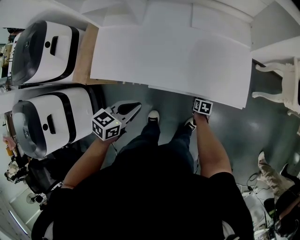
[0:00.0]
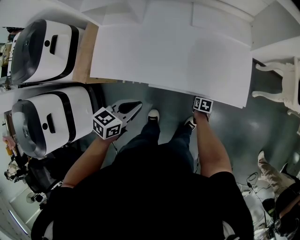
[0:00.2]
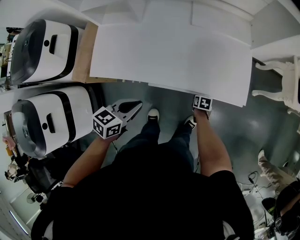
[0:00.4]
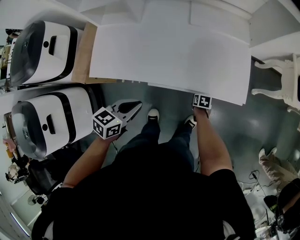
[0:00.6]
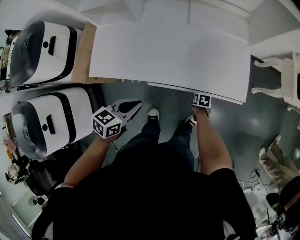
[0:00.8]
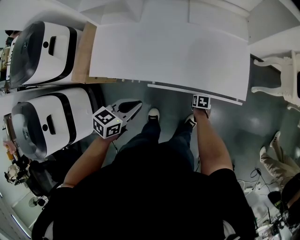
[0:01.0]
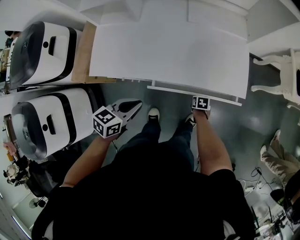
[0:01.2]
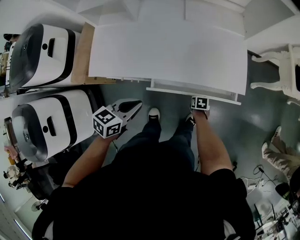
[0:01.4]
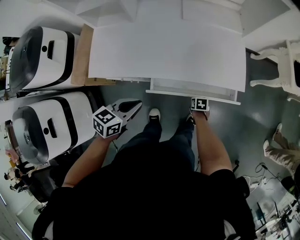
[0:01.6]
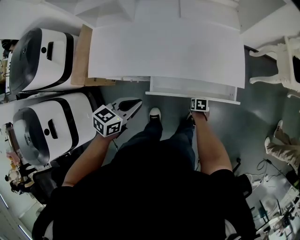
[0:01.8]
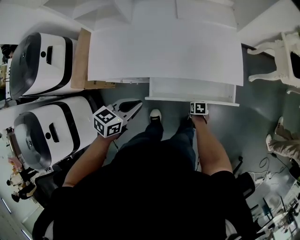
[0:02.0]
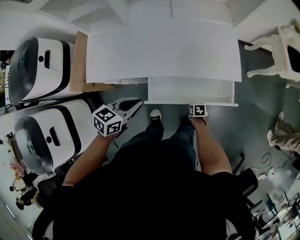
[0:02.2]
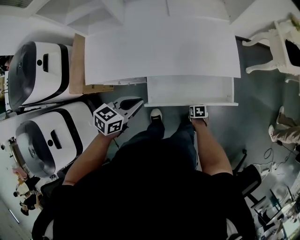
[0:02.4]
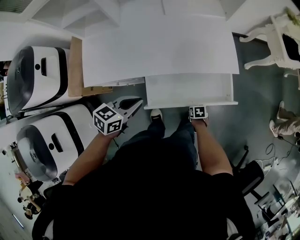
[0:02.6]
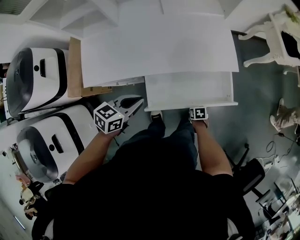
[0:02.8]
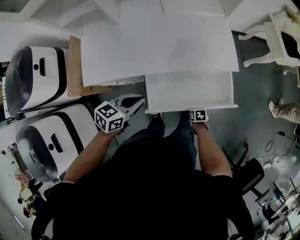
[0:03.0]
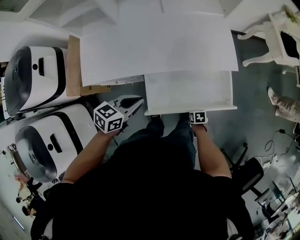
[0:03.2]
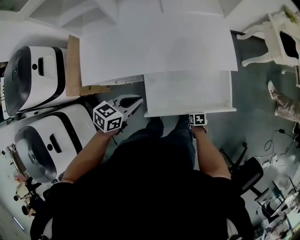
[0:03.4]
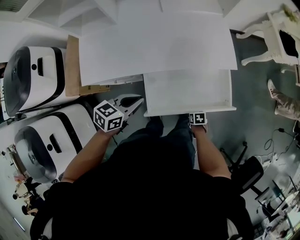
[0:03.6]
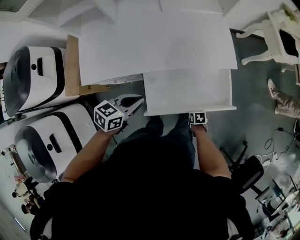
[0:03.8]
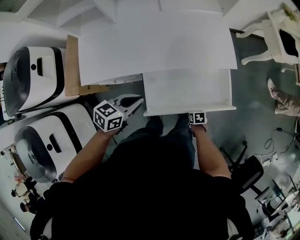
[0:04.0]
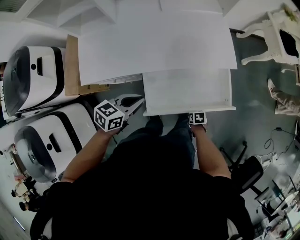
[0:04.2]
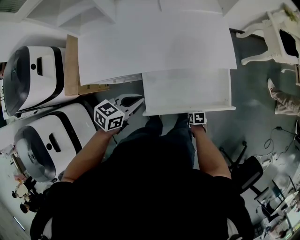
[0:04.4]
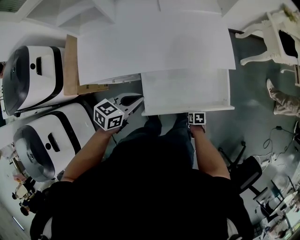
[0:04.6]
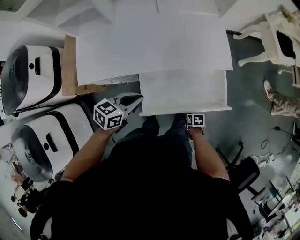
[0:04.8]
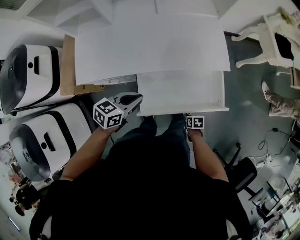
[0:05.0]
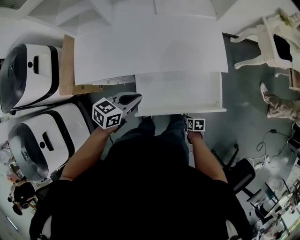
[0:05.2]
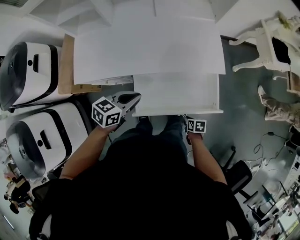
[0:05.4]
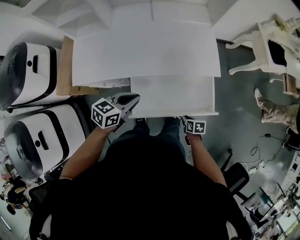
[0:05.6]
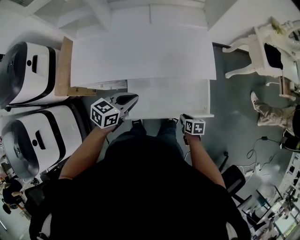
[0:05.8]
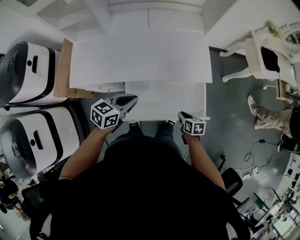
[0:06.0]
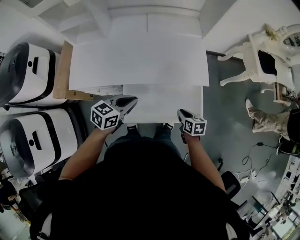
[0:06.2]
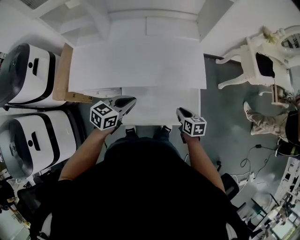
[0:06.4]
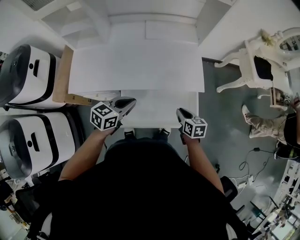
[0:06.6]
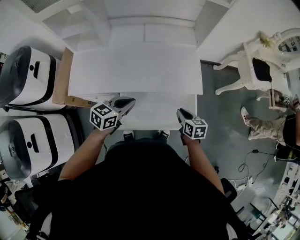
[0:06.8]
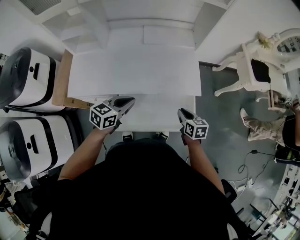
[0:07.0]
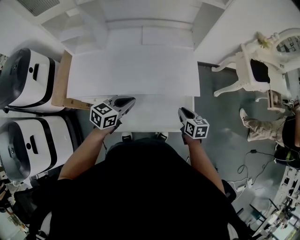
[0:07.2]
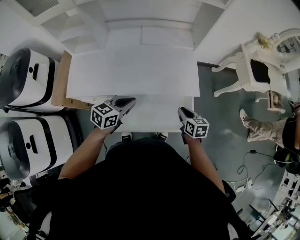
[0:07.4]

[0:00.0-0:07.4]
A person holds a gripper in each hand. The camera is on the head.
0:00.0 to 0:01.4: The right gripper moves backward, roughly 5 cm.
0:01.4 to 0:03.0: The right gripper changes place by about 15 cm.
0:03.0 to 0:04.4: The grippers move only a little.
0:04.4 to 0:06.0: The left gripper ends up roughly 10 cm from where it was. The right gripper goes some 15 cm upward, and rotates roughly 20 degrees.
0:06.0 to 0:07.4: The left gripper changes place by roughly 5 cm. Meanwhile the right gripper moves upward and forward, some 15 cm.

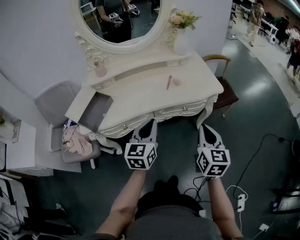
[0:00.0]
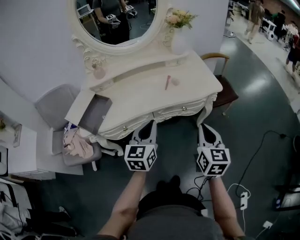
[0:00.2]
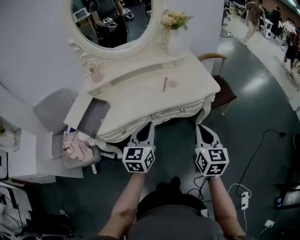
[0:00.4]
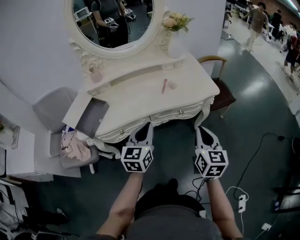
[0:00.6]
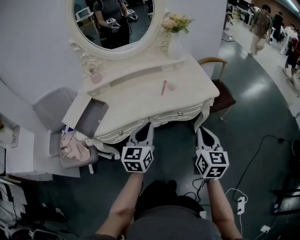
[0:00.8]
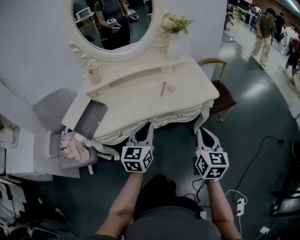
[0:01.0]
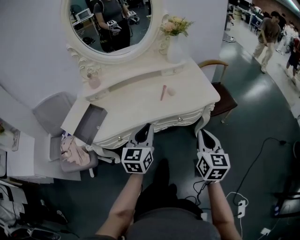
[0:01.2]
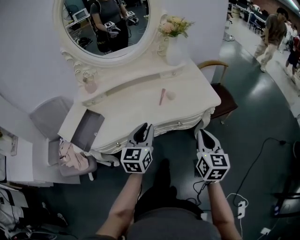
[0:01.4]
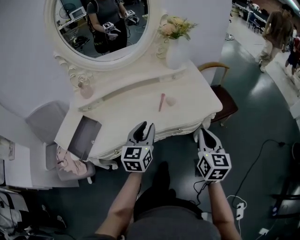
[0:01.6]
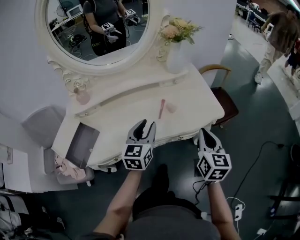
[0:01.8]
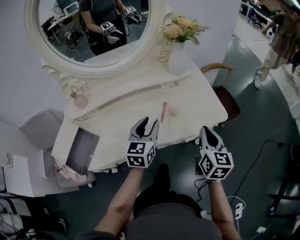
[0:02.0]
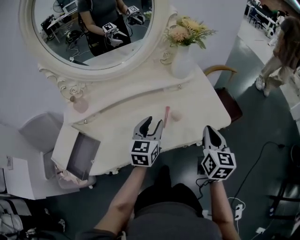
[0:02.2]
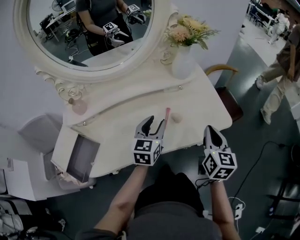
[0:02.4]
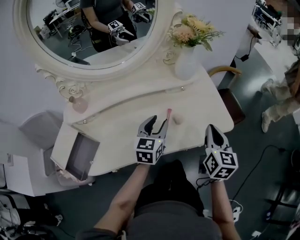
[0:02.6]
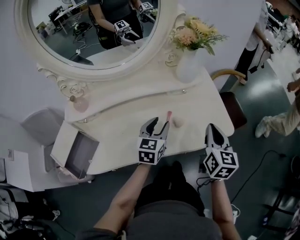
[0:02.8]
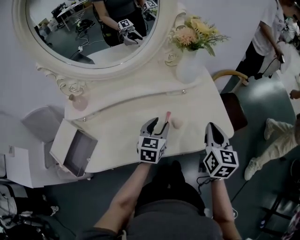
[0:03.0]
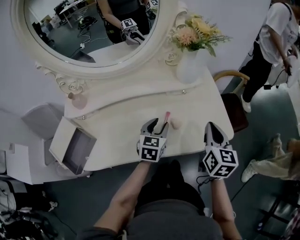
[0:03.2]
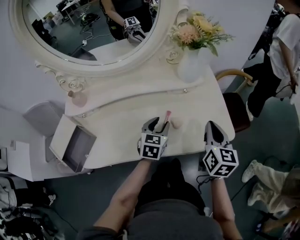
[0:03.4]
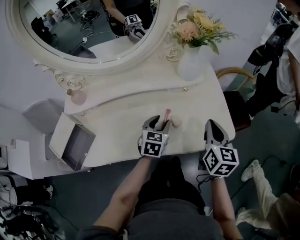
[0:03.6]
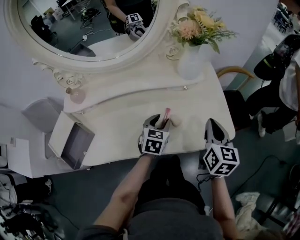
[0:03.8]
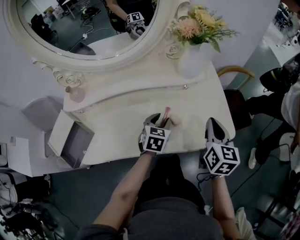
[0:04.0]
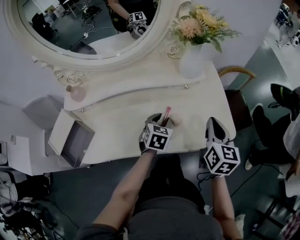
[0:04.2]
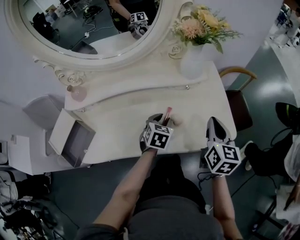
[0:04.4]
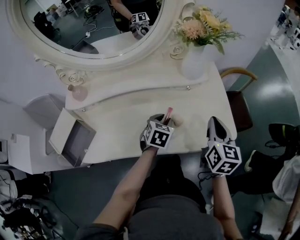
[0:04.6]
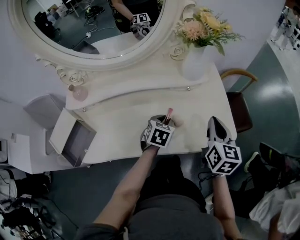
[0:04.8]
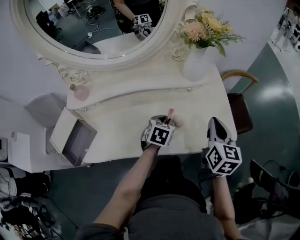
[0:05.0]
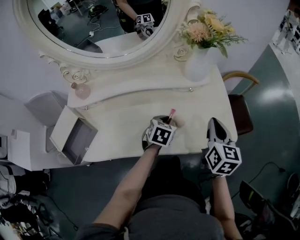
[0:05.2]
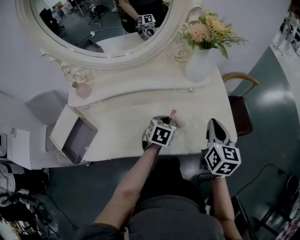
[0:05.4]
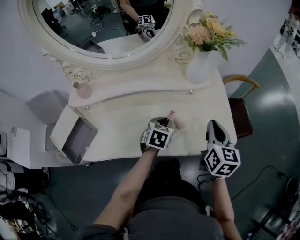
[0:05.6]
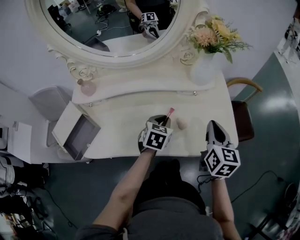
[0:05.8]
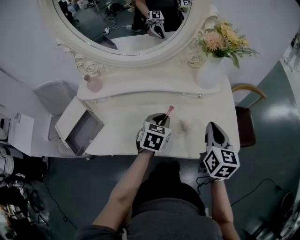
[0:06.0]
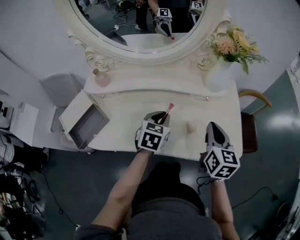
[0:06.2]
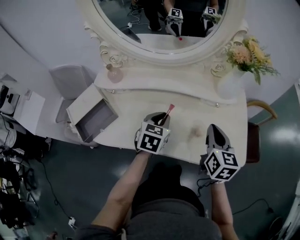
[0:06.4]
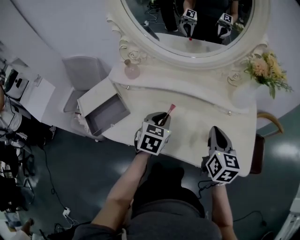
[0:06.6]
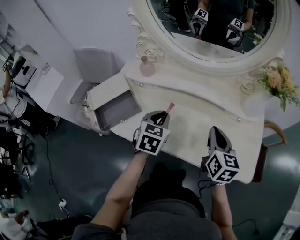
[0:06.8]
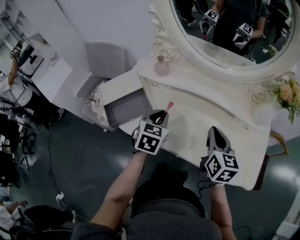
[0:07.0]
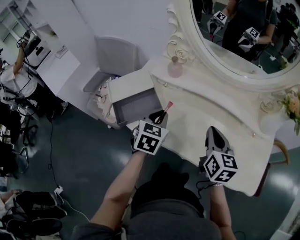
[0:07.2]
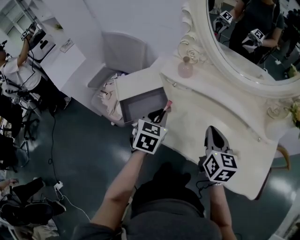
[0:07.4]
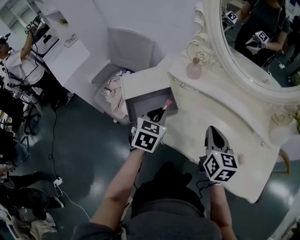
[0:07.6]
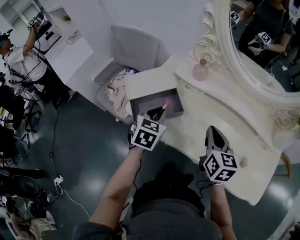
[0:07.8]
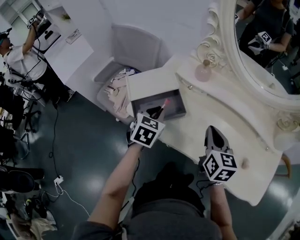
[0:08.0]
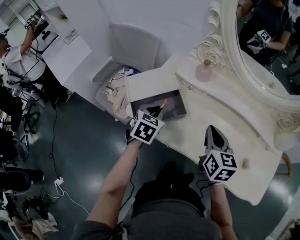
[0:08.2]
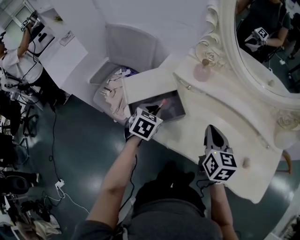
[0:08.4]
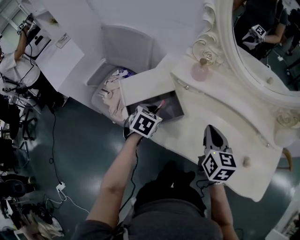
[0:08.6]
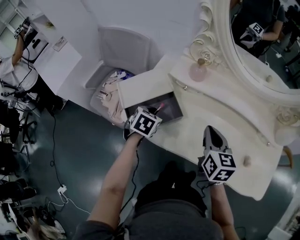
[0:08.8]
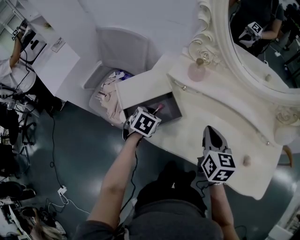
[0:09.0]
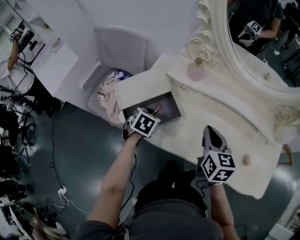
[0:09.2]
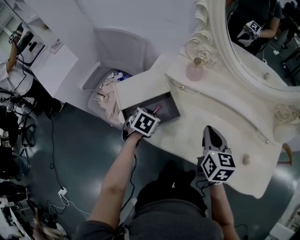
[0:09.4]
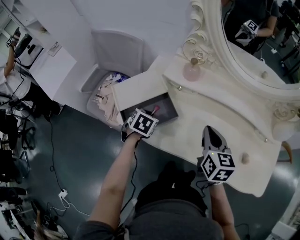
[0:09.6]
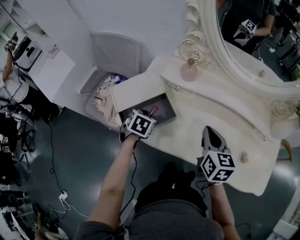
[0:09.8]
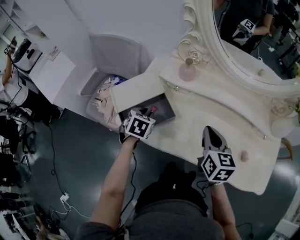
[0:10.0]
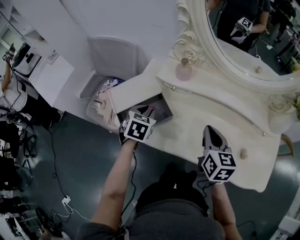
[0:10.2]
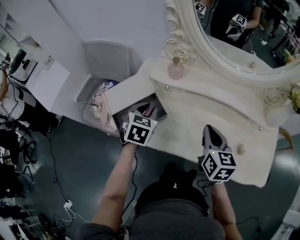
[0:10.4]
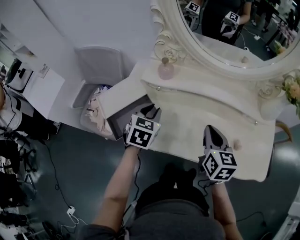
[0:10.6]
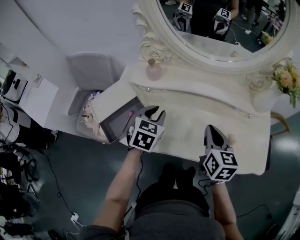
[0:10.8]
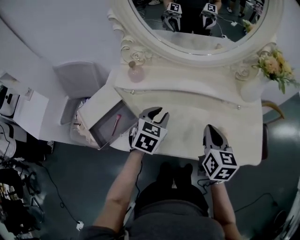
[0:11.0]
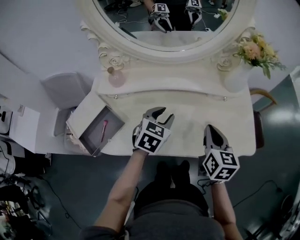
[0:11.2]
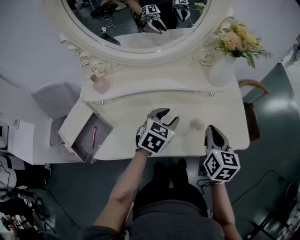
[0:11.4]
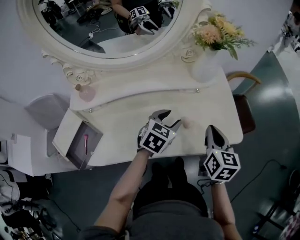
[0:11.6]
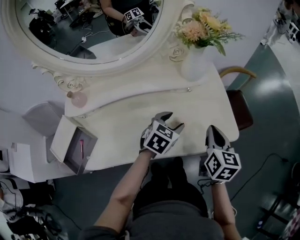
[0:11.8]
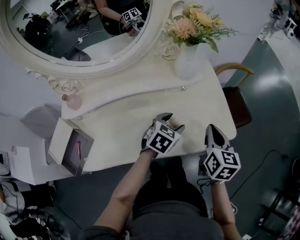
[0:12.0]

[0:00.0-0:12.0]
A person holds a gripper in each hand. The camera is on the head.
0:00.0 to 0:01.6: The grippers both shift forward by roughly 15 cm. The left gripper opens up.
0:01.6 to 0:03.0: The right gripper travels forward by some 20 cm. Meanwhile the left gripper shifts about 20 cm forward and downward.
0:03.0 to 0:04.4: The left gripper goes about 5 cm downward, and swivels approximately 20 degrees.
0:04.4 to 0:06.0: The left gripper moves upward, approximately 5 cm, and closes its fingers.
0:06.0 to 0:07.6: The right gripper ends up some 35 cm from where it was, and turns by roughly 40 degrees. The left gripper shifts by approximately 40 cm, and rotates about 30 degrees.
0:07.6 to 0:09.0: The left gripper is displaced downward, to the left and forward by some 15 cm, and changes its angle by approximately 20 degrees. The right gripper shifts by roughly 5 cm.
0:09.0 to 0:10.4: The right gripper heads to the right, covering approximately 5 cm. The left gripper heads upward and to the right, covering some 10 cm.
0:10.4 to 0:12.0: The right gripper moves approximately 40 cm, and changes its angle by some 40 degrees; the left gripper moves roughly 50 cm, swivels approximately 50 degrees, and opens up.

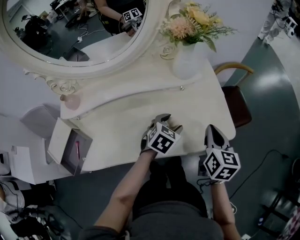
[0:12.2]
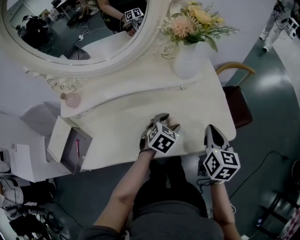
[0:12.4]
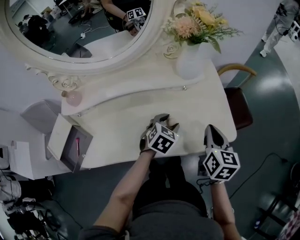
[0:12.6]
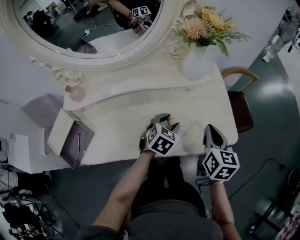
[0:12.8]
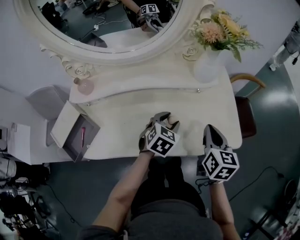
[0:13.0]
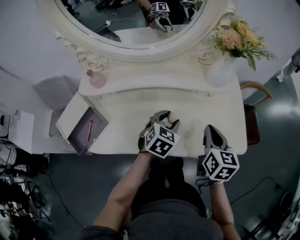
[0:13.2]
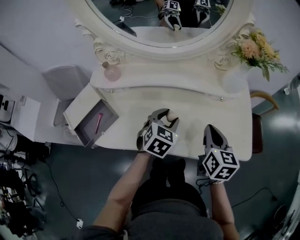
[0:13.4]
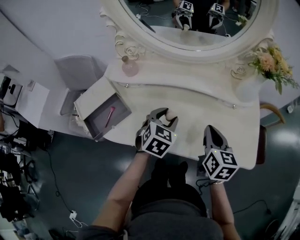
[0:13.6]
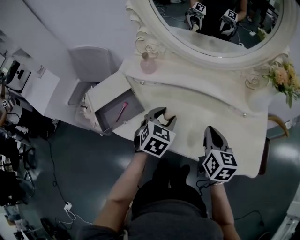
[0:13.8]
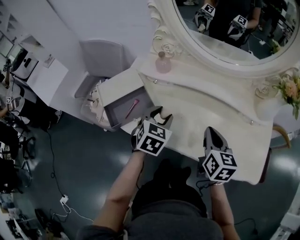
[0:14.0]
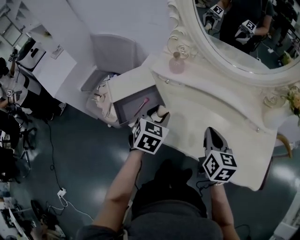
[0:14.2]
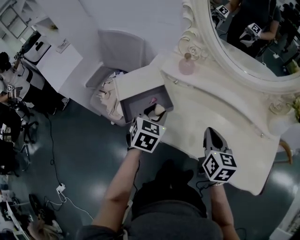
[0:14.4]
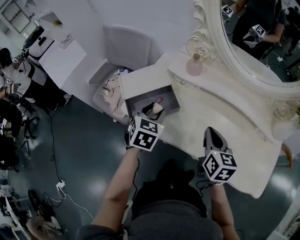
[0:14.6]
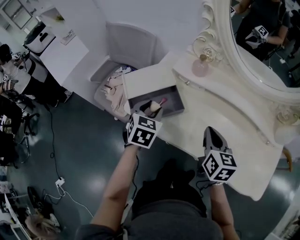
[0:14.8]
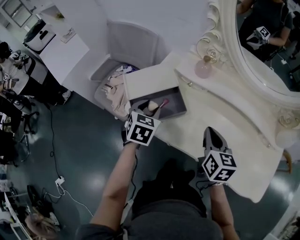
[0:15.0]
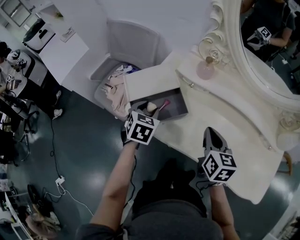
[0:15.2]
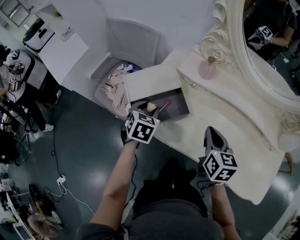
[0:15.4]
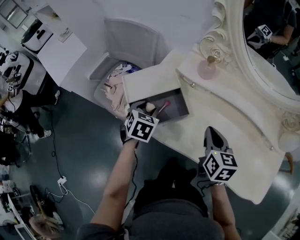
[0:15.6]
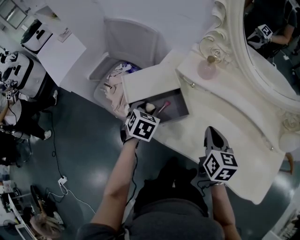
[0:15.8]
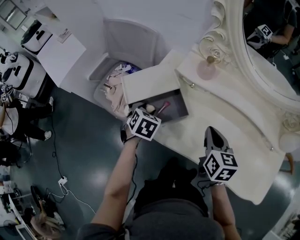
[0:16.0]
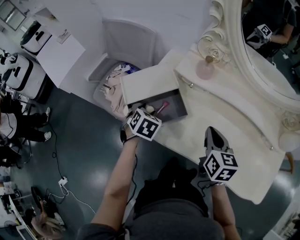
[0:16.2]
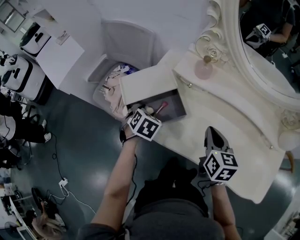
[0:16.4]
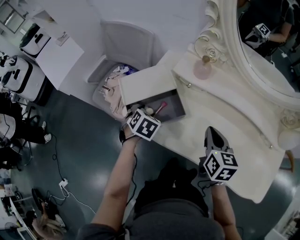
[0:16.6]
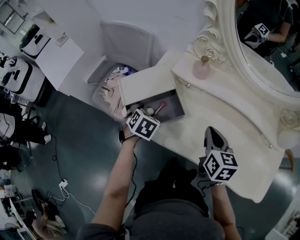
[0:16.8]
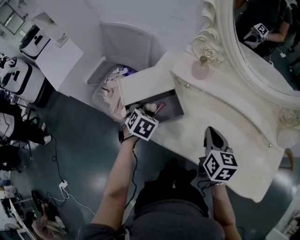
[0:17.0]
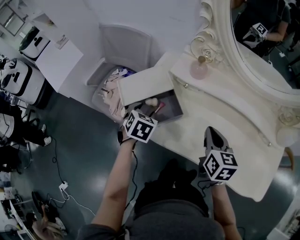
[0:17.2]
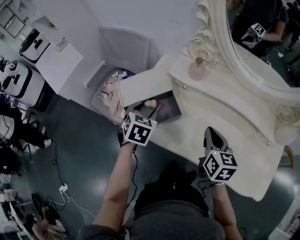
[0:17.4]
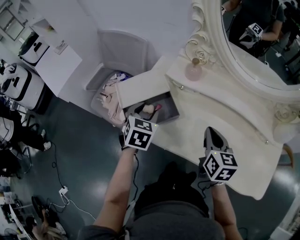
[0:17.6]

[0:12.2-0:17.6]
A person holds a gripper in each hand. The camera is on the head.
0:12.2 to 0:13.6: The left gripper moves about 25 cm, and rotates some 30 degrees. The right gripper ends up some 20 cm from where it was, and swivels approximately 30 degrees.
0:13.6 to 0:15.0: The left gripper shifts by approximately 35 cm, and rotates roughly 30 degrees, while the right gripper changes place by roughly 25 cm, and rotates approximately 20 degrees.
0:15.0 to 0:16.2: The left gripper is displaced downward by approximately 5 cm.
0:16.2 to 0:17.6: The left gripper travels upward by approximately 10 cm.
